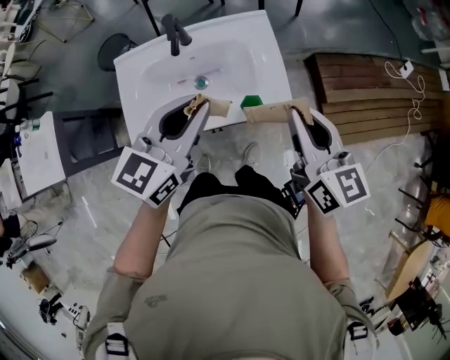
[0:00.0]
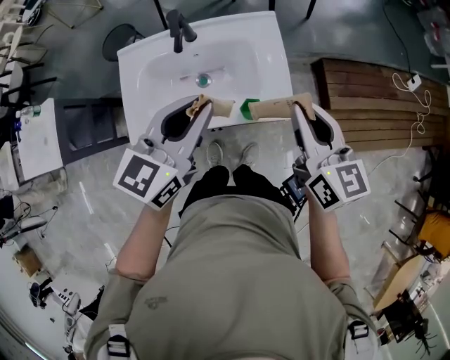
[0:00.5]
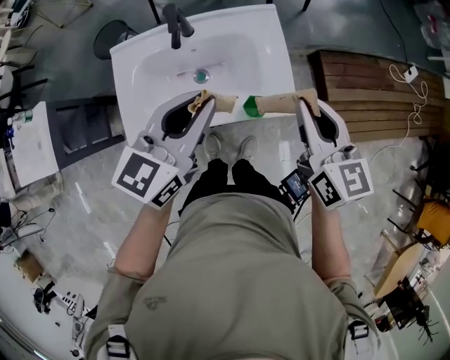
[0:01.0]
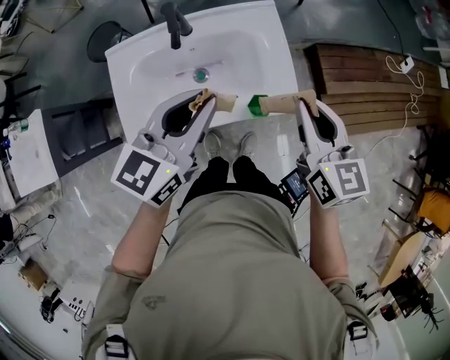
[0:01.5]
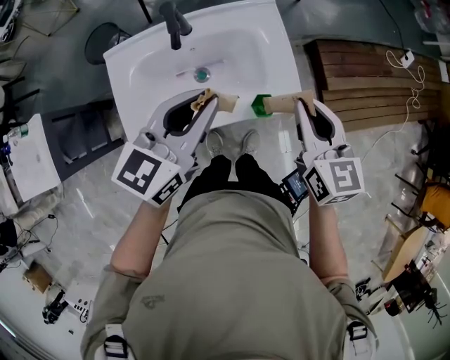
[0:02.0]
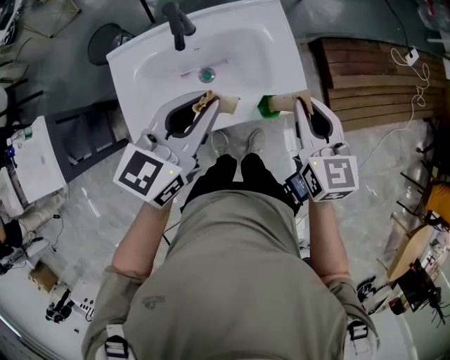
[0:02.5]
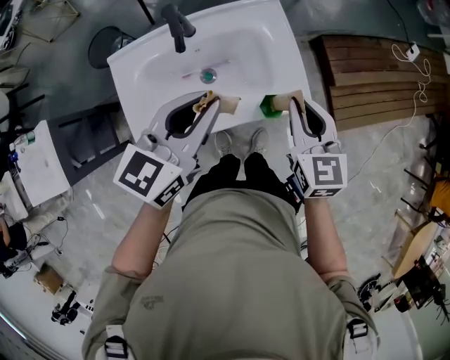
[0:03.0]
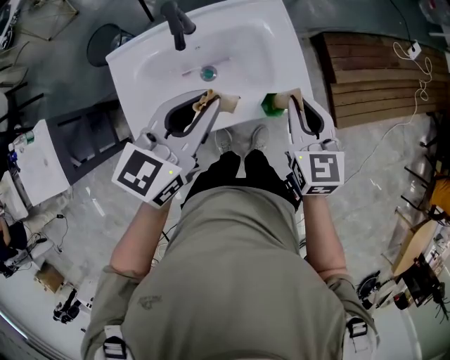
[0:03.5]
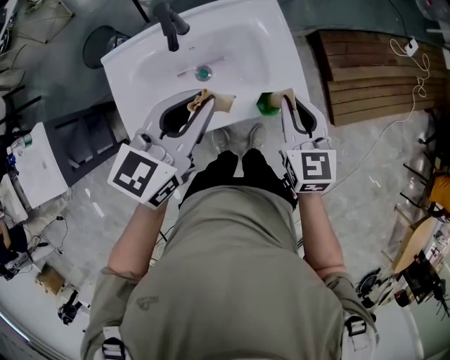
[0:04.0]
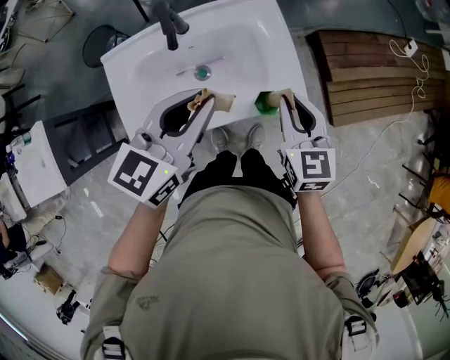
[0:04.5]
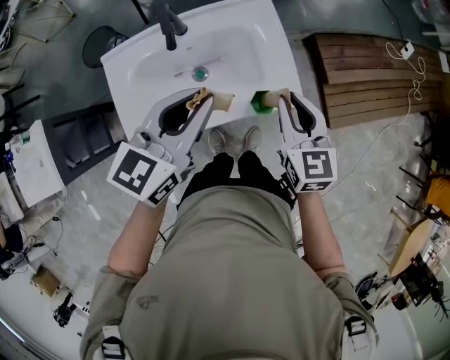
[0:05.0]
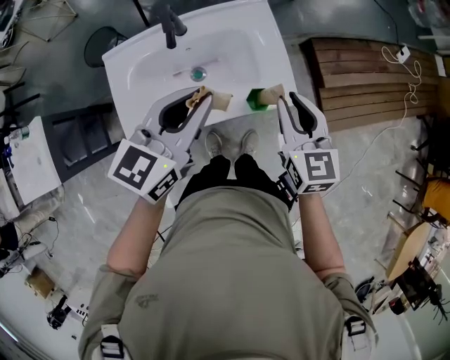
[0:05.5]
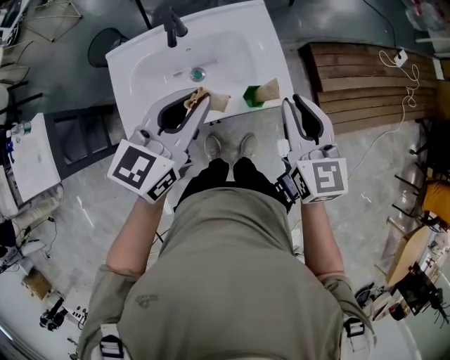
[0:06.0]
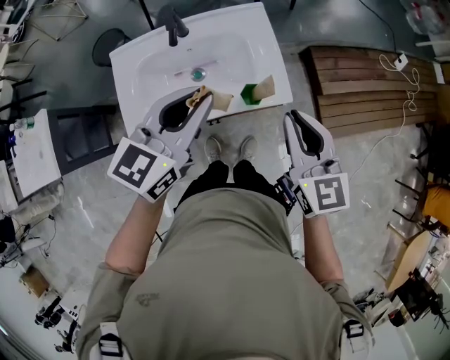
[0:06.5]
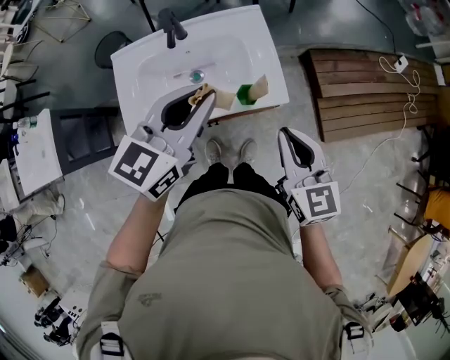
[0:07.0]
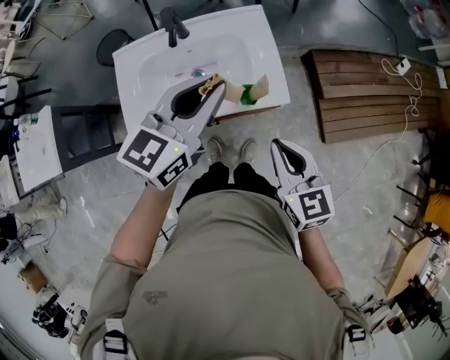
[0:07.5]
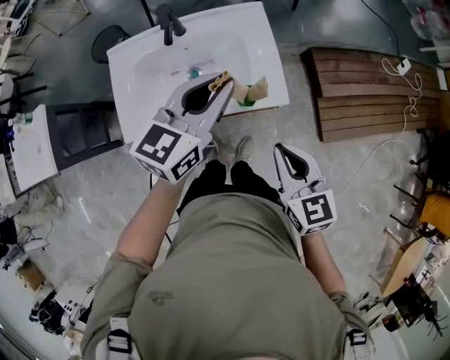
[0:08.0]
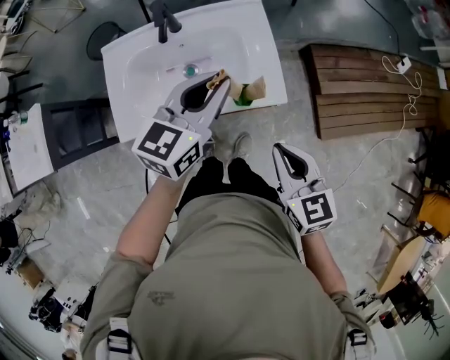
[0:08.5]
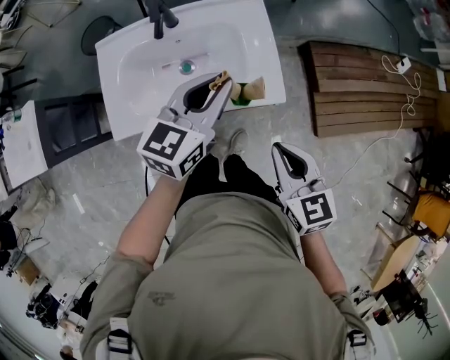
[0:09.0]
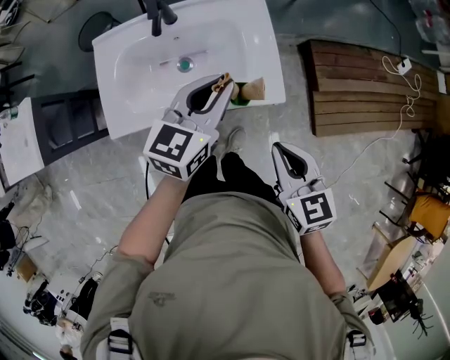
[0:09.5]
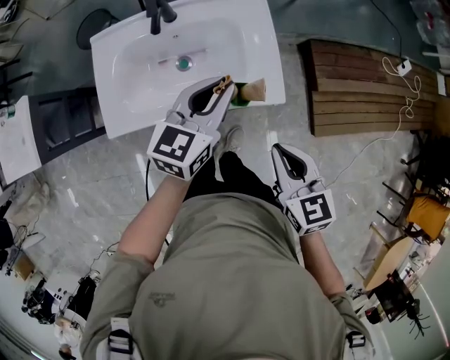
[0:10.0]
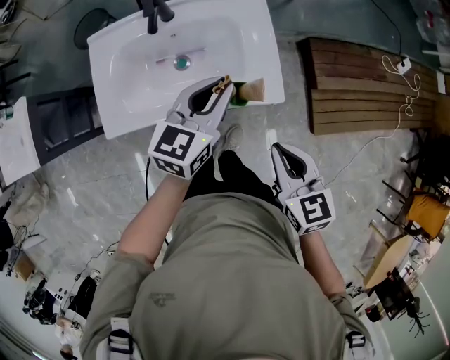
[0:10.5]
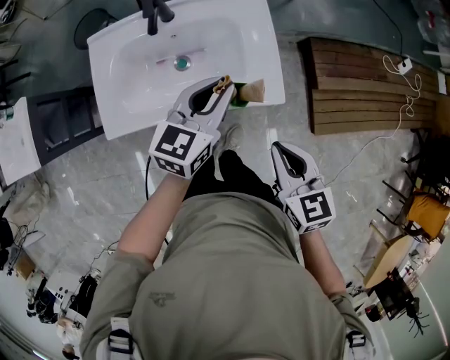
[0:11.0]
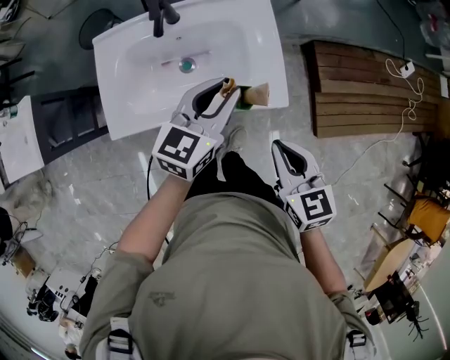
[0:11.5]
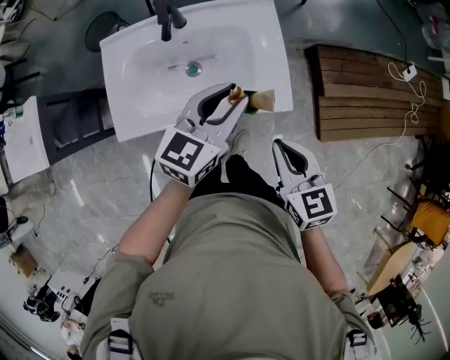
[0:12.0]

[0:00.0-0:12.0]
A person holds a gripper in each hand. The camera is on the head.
0:00.0 to 0:02.0: The right gripper is displaced downward by roughly 5 cm; the left gripper shifts by about 5 cm.
0:02.0 to 0:04.0: The right gripper is displaced downward by some 5 cm.
0:04.0 to 0:06.0: The left gripper moves roughly 5 cm; the right gripper moves upward, approximately 10 cm.
0:06.0 to 0:08.0: The right gripper travels backward by approximately 10 cm. Meanwhile the left gripper is displaced to the right by about 5 cm.
0:08.0 to 0:10.0: The left gripper moves downward, approximately 10 cm.
0:10.0 to 0:12.0: The grippers make only small movements.

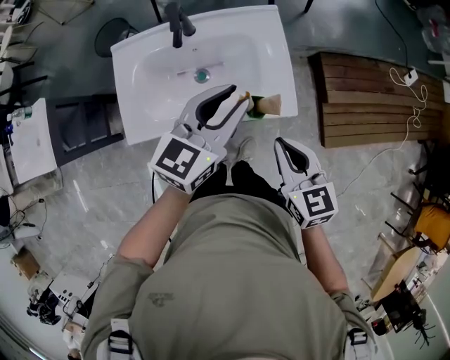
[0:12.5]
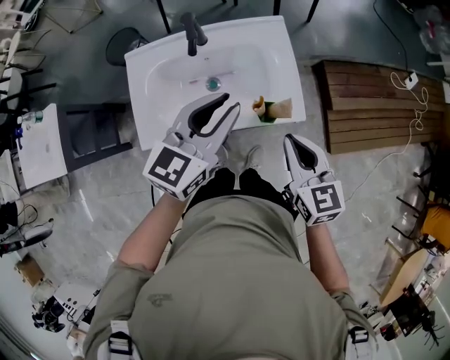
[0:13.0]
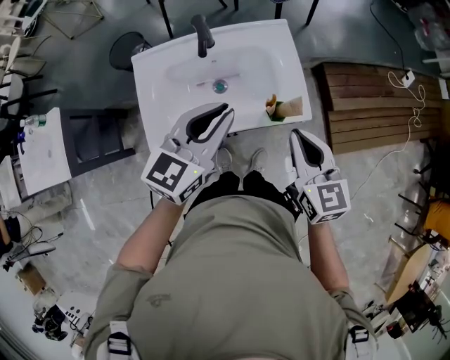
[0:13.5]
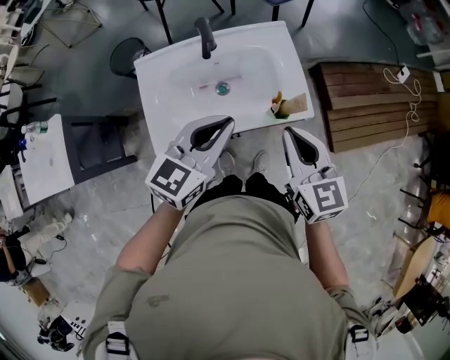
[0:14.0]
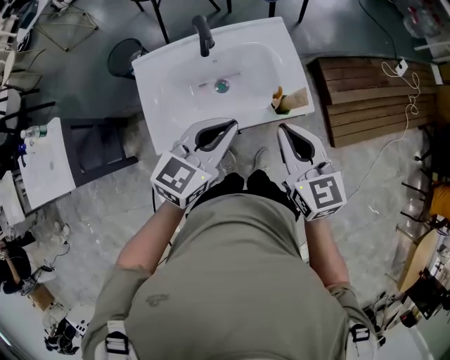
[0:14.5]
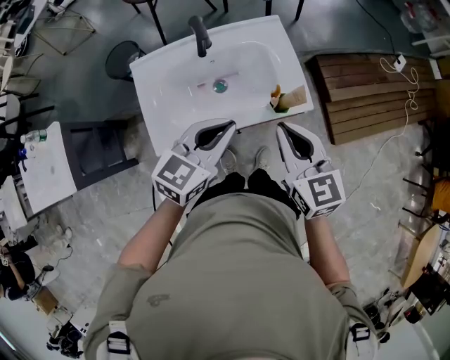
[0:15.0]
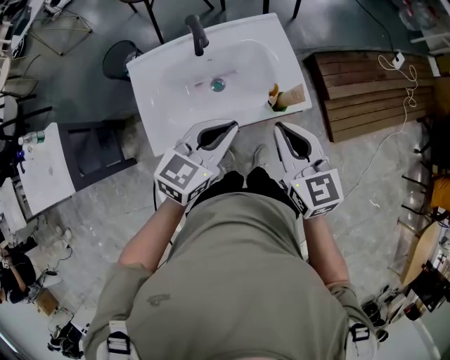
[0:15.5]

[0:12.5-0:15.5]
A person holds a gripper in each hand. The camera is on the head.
0:12.5 to 0:14.0: The left gripper moves to the left and backward, some 10 cm; the right gripper travels to the left and upward by some 10 cm.
0:14.0 to 0:15.5: The grippers stay close to where they were, moving slightly.

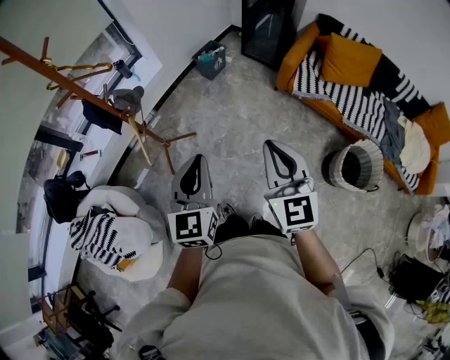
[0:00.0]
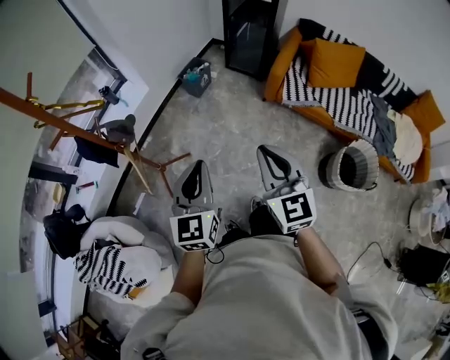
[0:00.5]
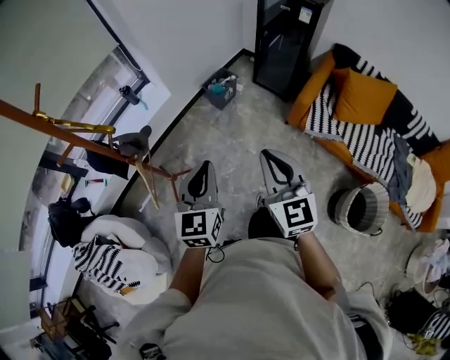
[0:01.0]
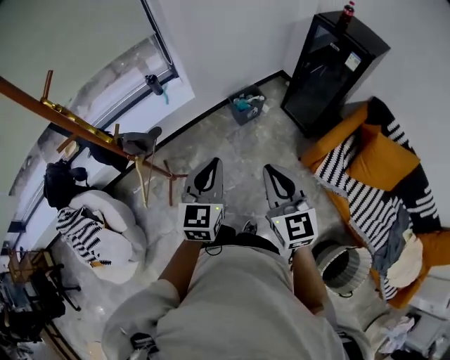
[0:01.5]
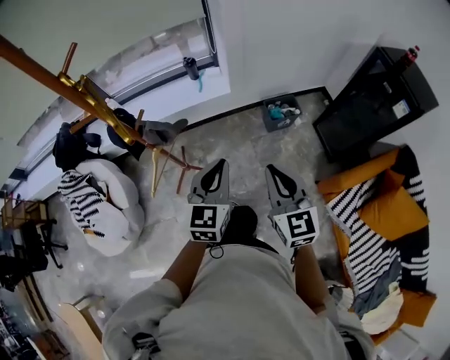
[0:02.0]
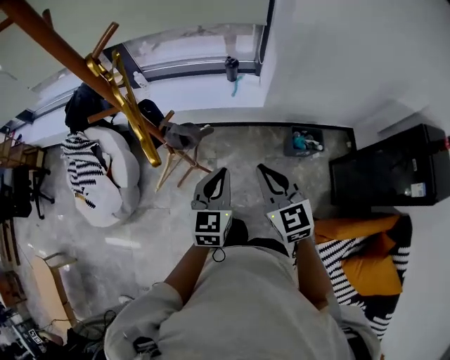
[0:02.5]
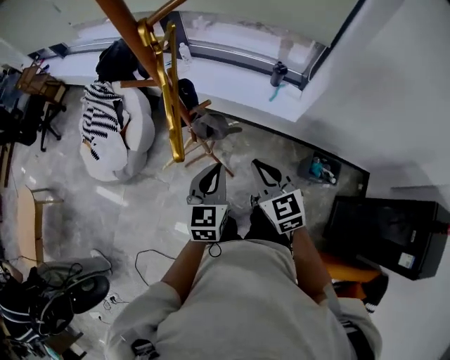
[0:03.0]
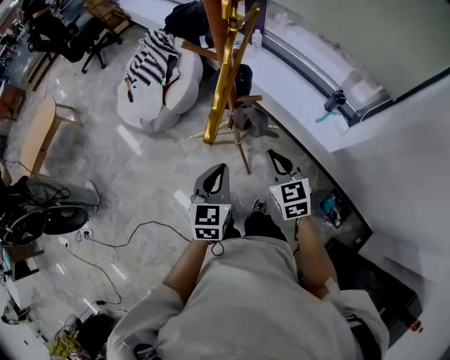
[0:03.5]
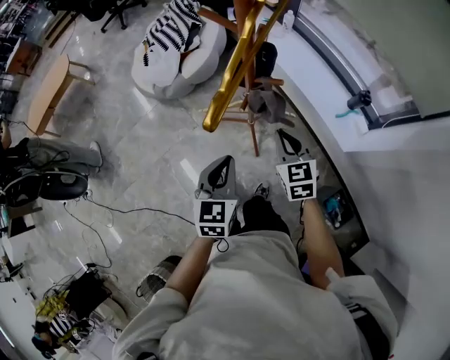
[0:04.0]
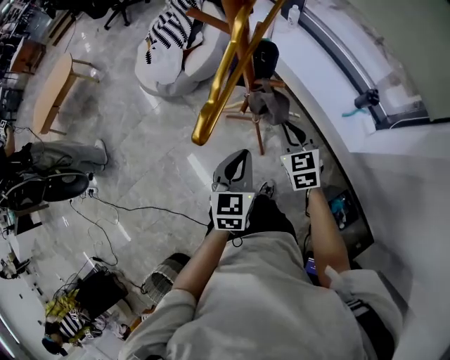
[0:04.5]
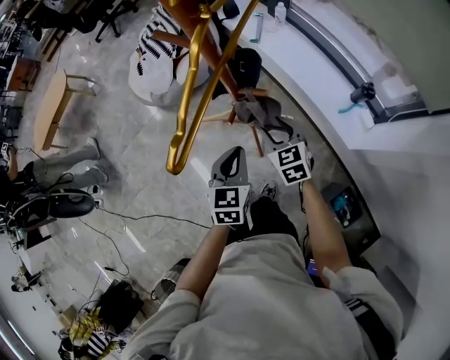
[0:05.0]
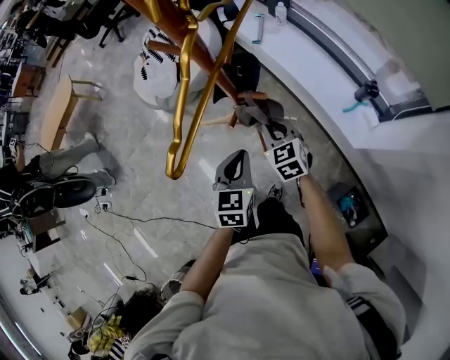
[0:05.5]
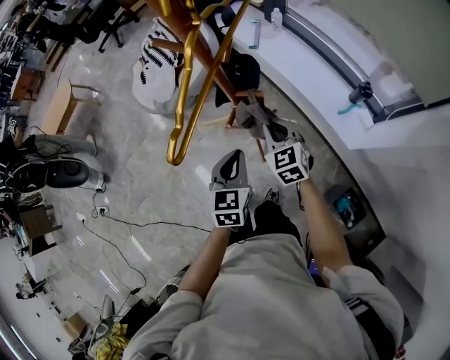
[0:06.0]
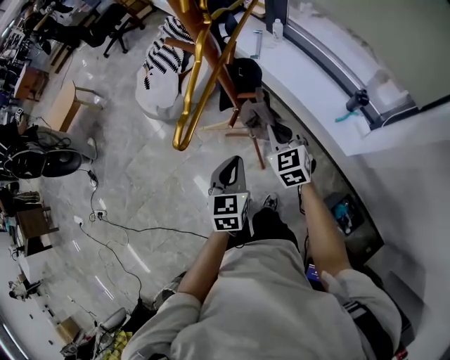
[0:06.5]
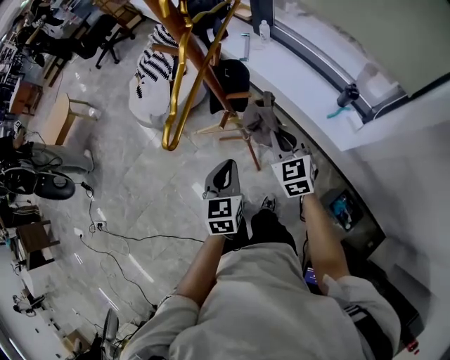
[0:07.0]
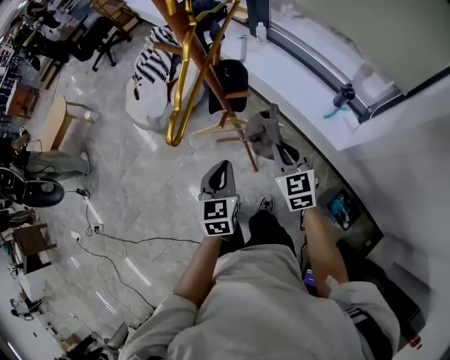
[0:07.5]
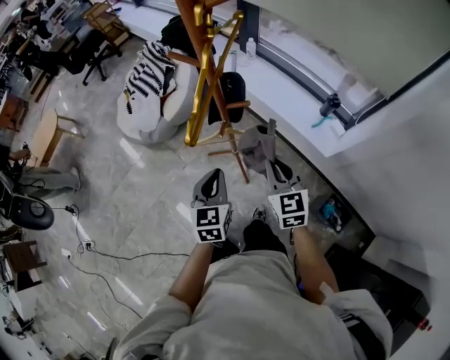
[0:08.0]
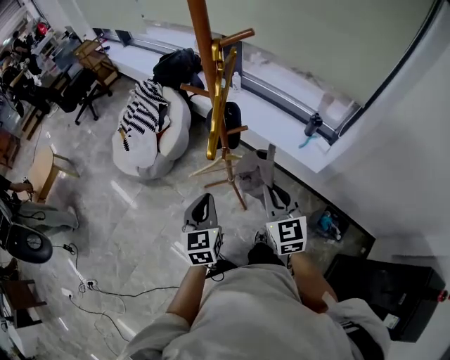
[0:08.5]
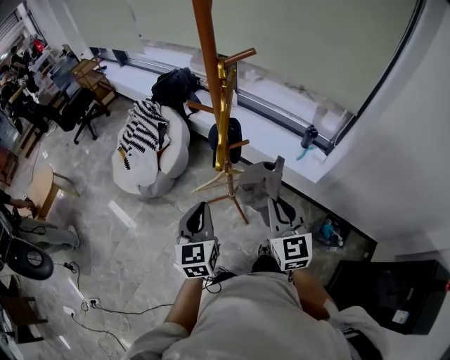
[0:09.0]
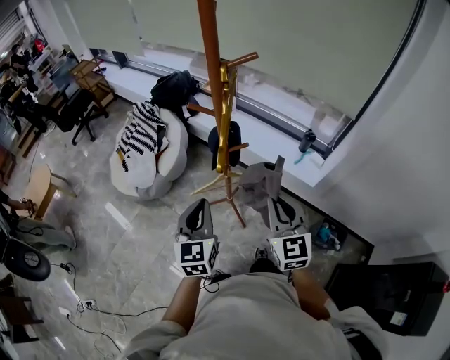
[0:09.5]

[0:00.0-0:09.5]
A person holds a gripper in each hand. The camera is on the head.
0:00.0 to 0:02.0: The pair of grippers is taken approximately 40 cm. The right gripper changes its angle by approximately 40 degrees, while the left gripper turns by roughly 30 degrees.
0:02.0 to 0:04.0: The left gripper ends up some 20 cm from where it was, and rotates approximately 70 degrees. Meanwhile the right gripper ends up approximately 40 cm from where it was, and rotates some 70 degrees.
0:04.0 to 0:05.5: The left gripper goes roughly 10 cm to the right and forward, while the right gripper goes about 10 cm forward and downward, and opens, then closes once more.
0:05.5 to 0:07.5: The right gripper moves backward, upward and to the right, approximately 15 cm. The left gripper is displaced backward by some 5 cm.
0:07.5 to 0:09.5: The left gripper travels upward and to the left by about 20 cm, while the right gripper moves upward, backward and to the left, approximately 25 cm, and rotates approximately 20 degrees.

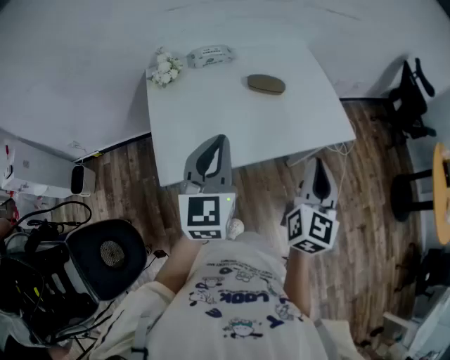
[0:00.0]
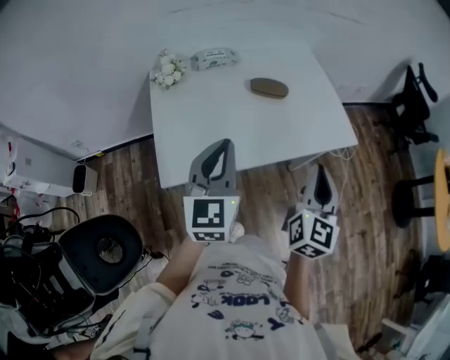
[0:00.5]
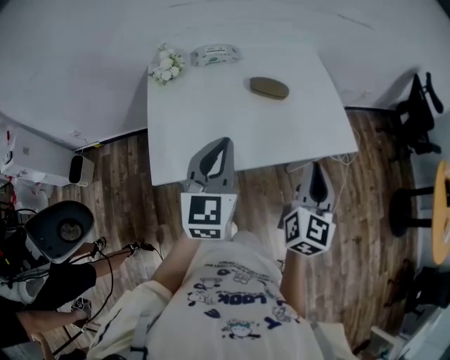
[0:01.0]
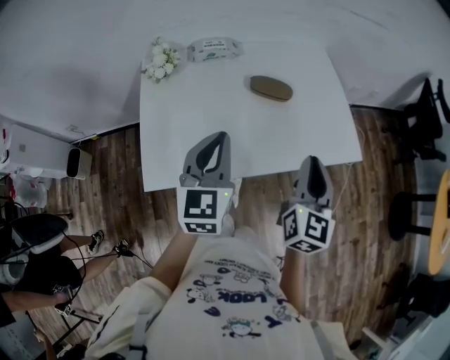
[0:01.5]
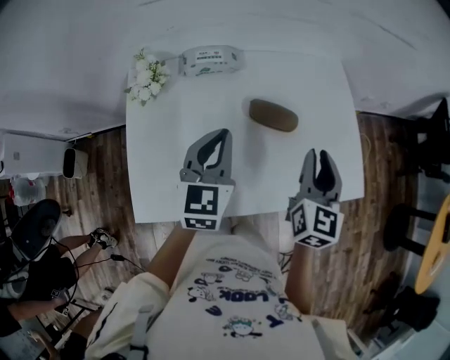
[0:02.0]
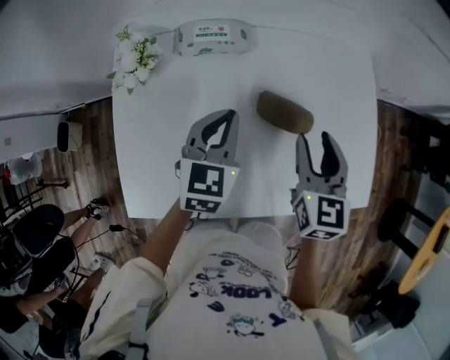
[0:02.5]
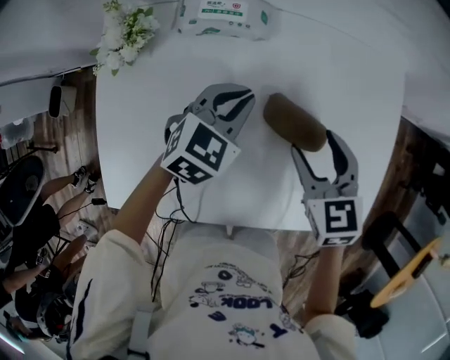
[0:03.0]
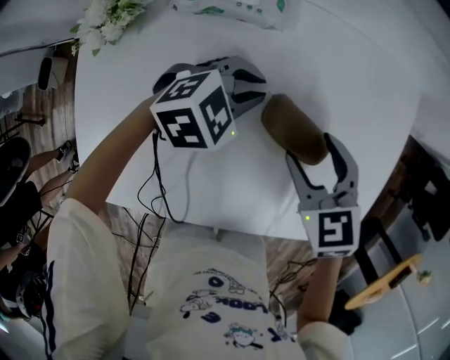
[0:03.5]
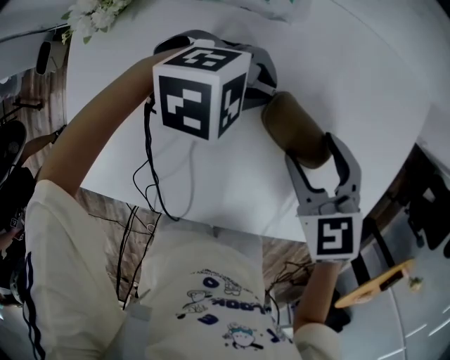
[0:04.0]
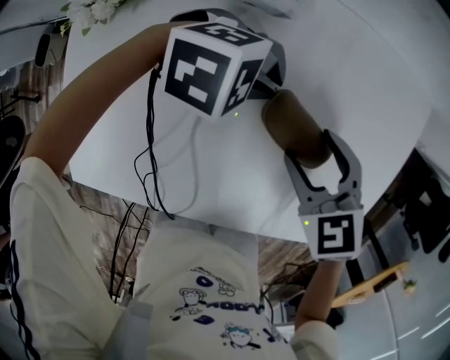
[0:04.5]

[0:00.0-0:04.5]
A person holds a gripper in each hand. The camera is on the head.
0:00.0 to 0:02.0: The grippers both shift forward by approximately 30 cm.
0:02.0 to 0:04.5: Both grippers move downward, about 20 cm. The right gripper points its fingers some 40 degrees further downward, and opens its fingers, while the left gripper angles its fingers downward, by approximately 30 degrees.
